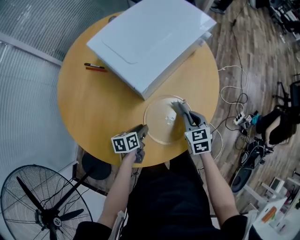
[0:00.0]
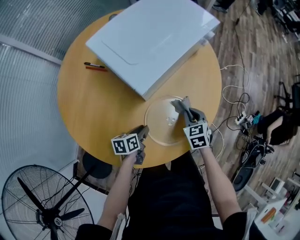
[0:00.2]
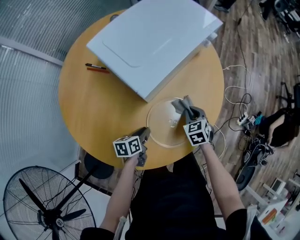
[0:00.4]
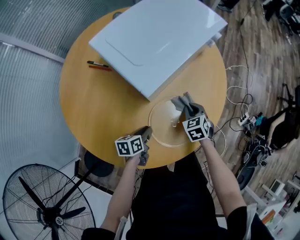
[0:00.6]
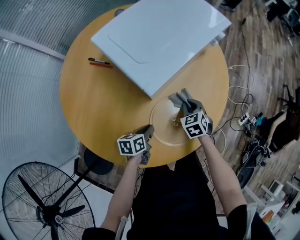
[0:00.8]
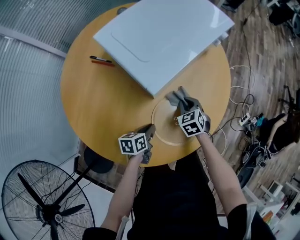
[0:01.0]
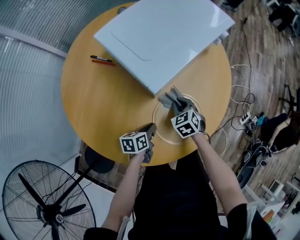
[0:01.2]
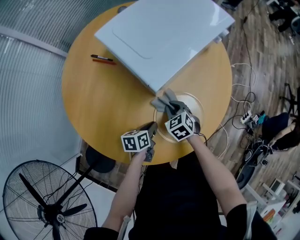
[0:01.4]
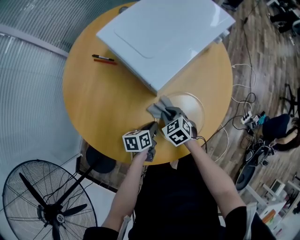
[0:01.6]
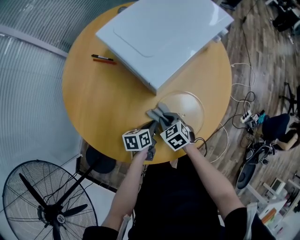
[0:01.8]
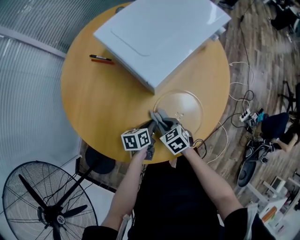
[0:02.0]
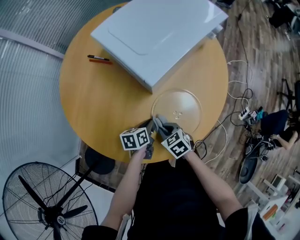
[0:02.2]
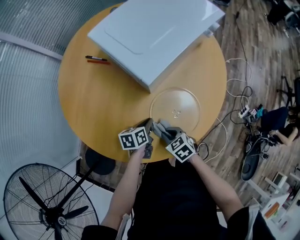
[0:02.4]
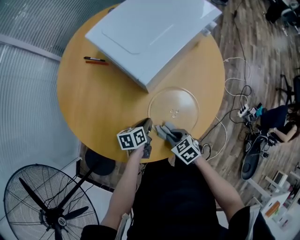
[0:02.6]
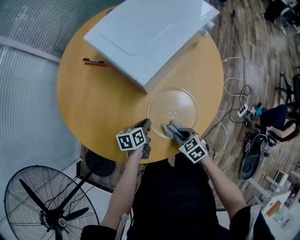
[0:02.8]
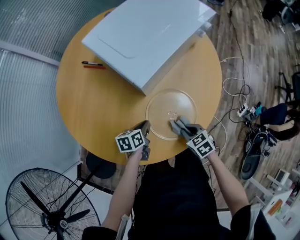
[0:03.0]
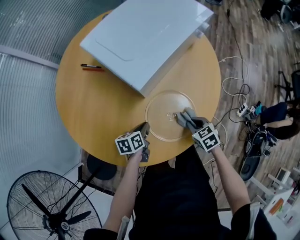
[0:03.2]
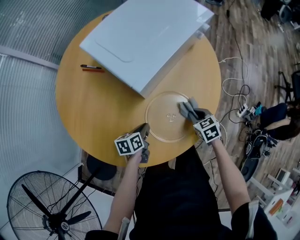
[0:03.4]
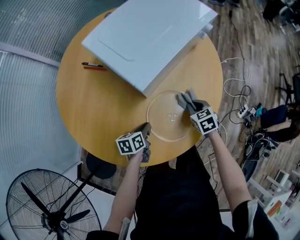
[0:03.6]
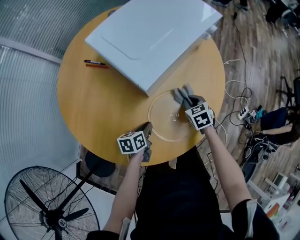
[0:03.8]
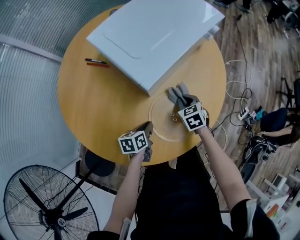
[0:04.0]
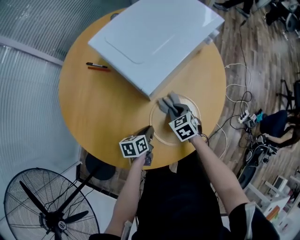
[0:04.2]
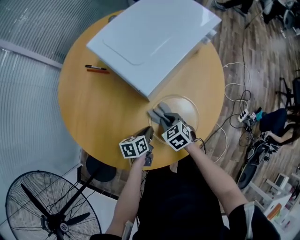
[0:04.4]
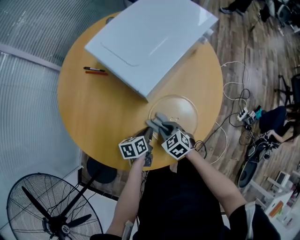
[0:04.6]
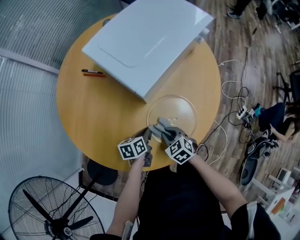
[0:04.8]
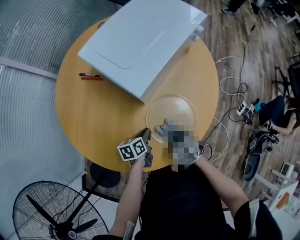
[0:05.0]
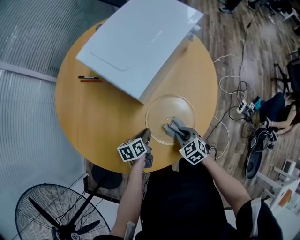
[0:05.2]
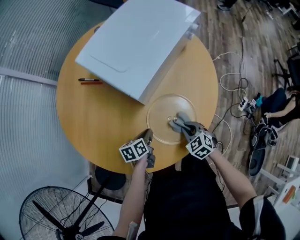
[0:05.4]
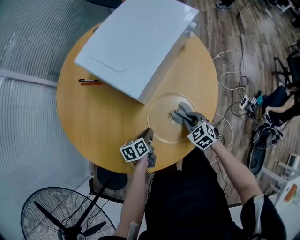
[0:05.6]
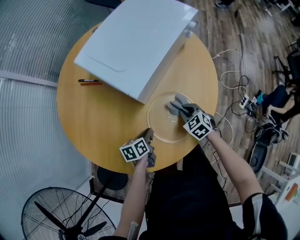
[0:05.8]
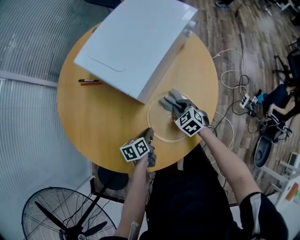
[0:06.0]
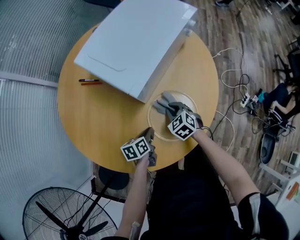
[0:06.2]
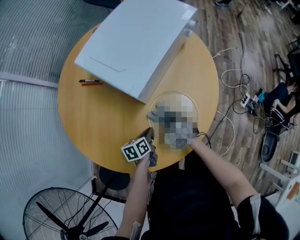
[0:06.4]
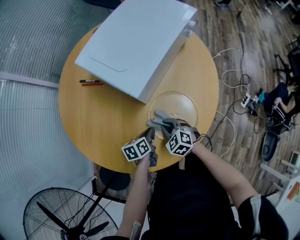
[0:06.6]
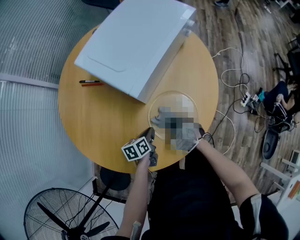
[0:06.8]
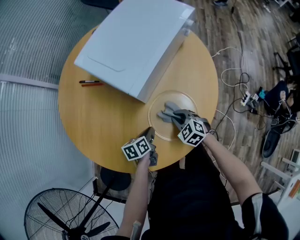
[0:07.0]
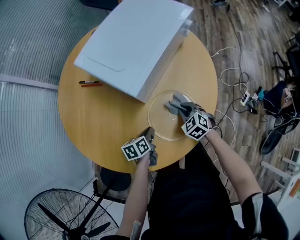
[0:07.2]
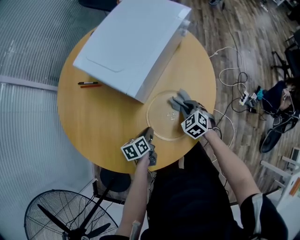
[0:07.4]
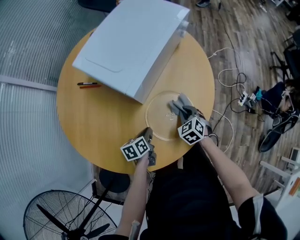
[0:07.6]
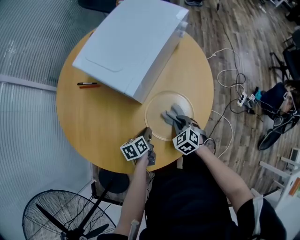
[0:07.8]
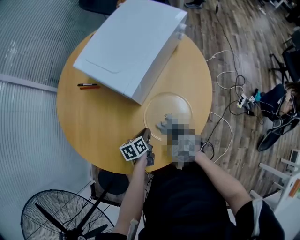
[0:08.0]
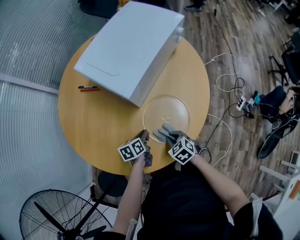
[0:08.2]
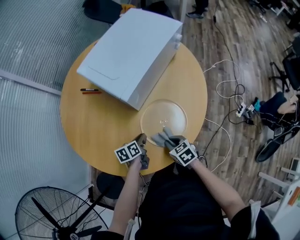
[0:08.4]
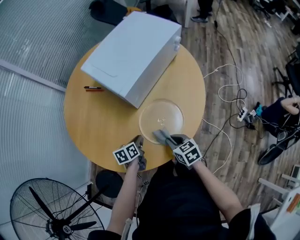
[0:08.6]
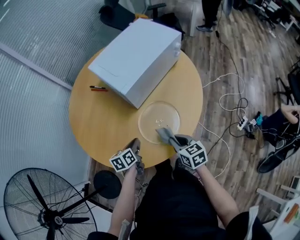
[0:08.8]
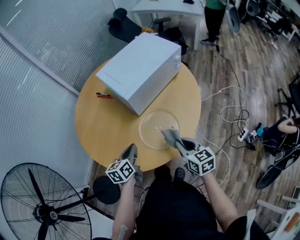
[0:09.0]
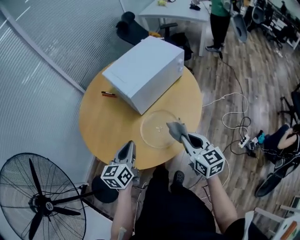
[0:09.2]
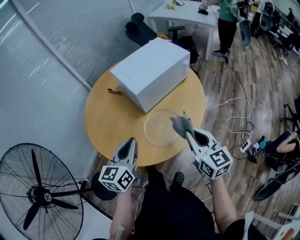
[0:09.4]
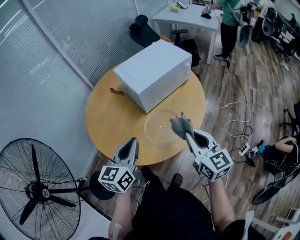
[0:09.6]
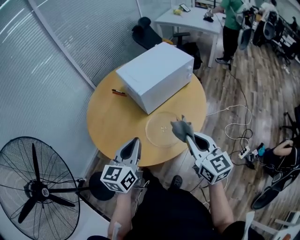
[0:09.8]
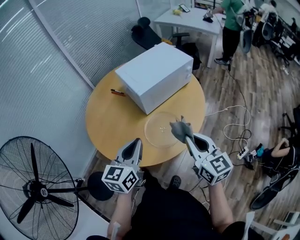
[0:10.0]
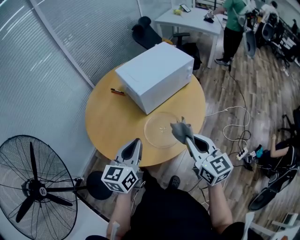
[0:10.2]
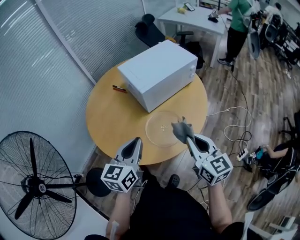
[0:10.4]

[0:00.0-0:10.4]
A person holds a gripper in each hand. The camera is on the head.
0:00.0 to 0:01.4: The right gripper is displaced to the left and downward by some 15 cm, and swivels approximately 20 degrees.
0:01.4 to 0:03.0: The right gripper shifts about 15 cm backward and to the right.
0:03.0 to 0:04.4: The right gripper travels to the left and forward by roughly 15 cm.
0:04.4 to 0:06.0: The right gripper travels to the right by approximately 10 cm.
0:07.4 to 0:09.0: Both grippers move upward, roughly 20 cm. The left gripper rotates roughly 30 degrees. Meanwhile the right gripper swivels some 50 degrees.
0:09.0 to 0:10.4: Both grippers move upward, about 15 cm. The right gripper rotates some 20 degrees; the left gripper rotates some 30 degrees.

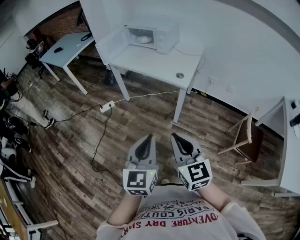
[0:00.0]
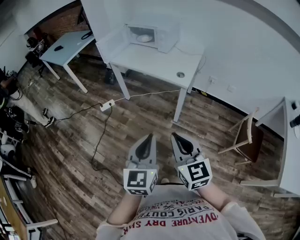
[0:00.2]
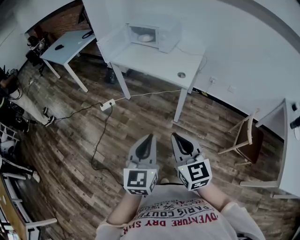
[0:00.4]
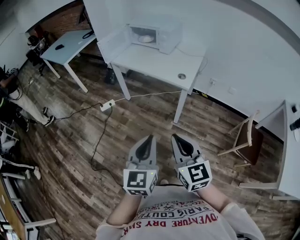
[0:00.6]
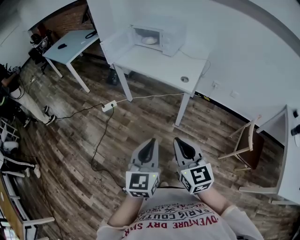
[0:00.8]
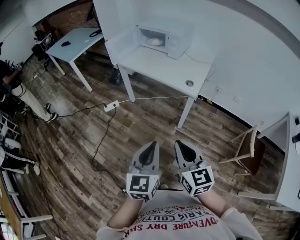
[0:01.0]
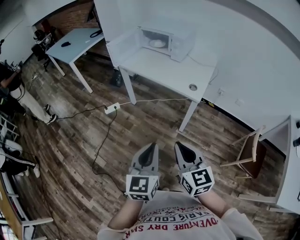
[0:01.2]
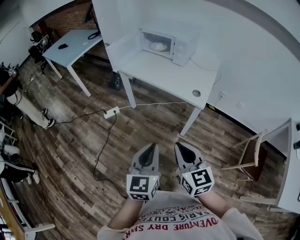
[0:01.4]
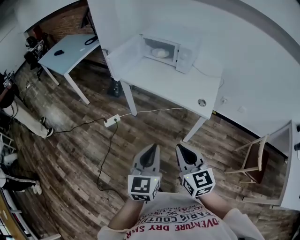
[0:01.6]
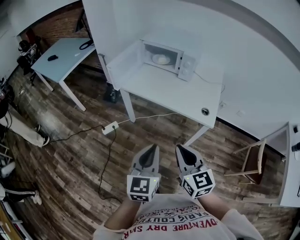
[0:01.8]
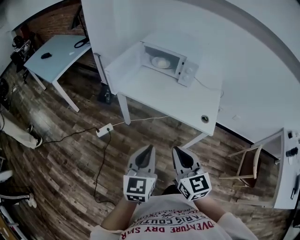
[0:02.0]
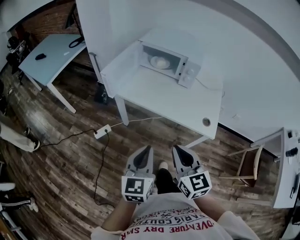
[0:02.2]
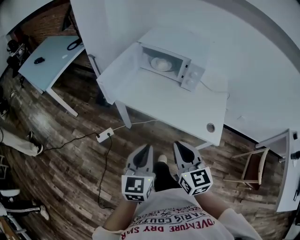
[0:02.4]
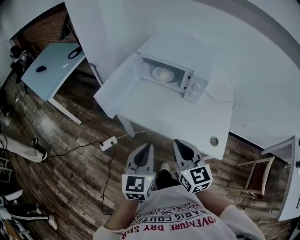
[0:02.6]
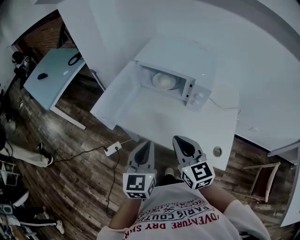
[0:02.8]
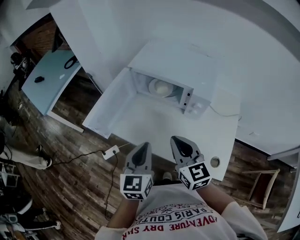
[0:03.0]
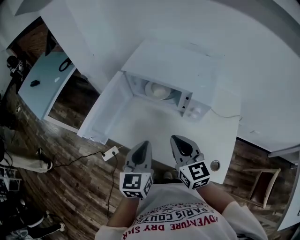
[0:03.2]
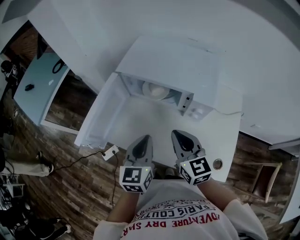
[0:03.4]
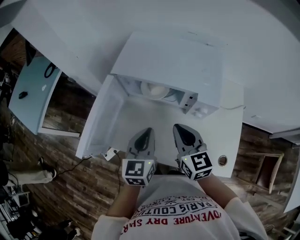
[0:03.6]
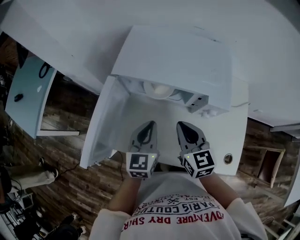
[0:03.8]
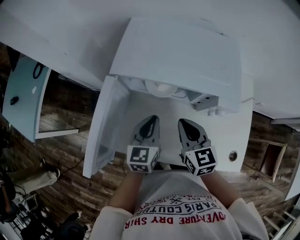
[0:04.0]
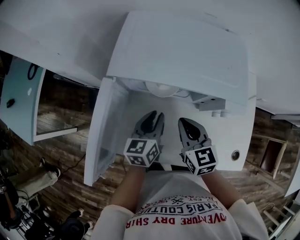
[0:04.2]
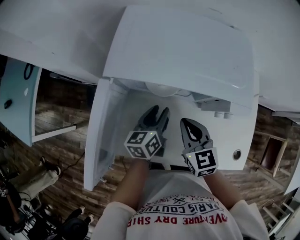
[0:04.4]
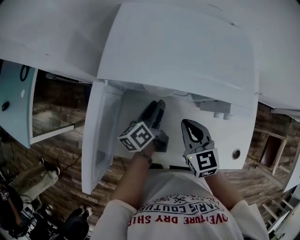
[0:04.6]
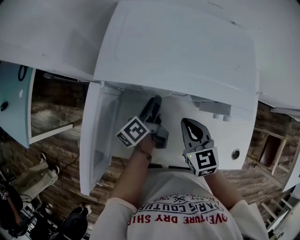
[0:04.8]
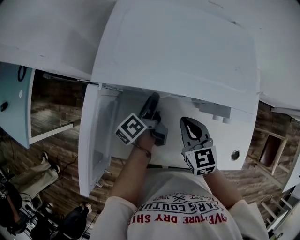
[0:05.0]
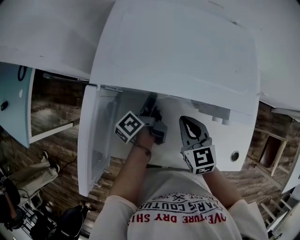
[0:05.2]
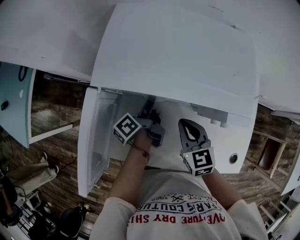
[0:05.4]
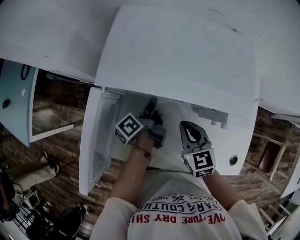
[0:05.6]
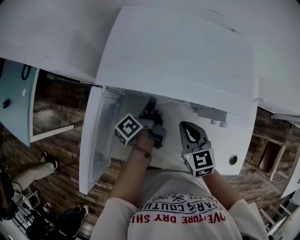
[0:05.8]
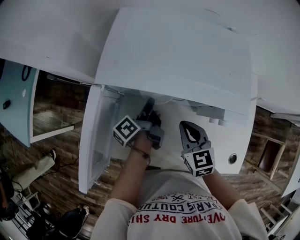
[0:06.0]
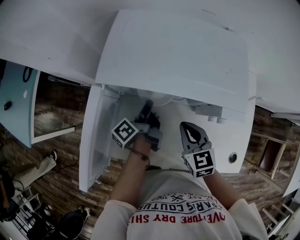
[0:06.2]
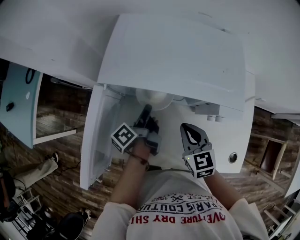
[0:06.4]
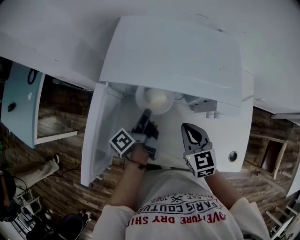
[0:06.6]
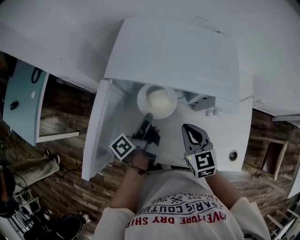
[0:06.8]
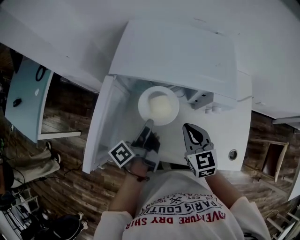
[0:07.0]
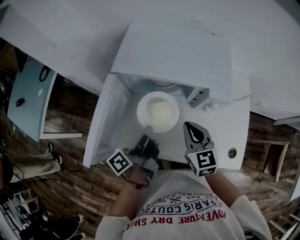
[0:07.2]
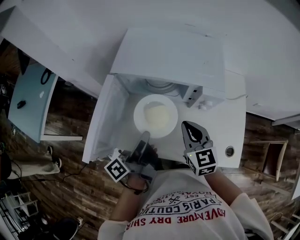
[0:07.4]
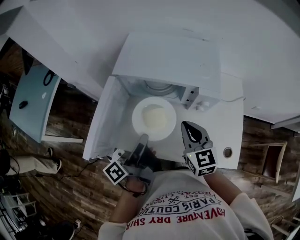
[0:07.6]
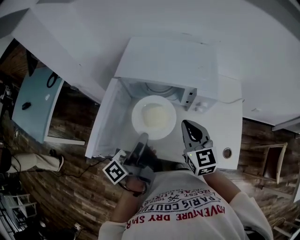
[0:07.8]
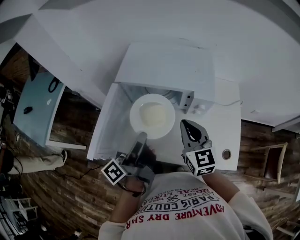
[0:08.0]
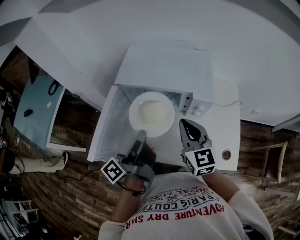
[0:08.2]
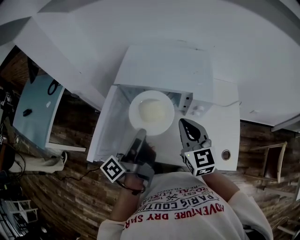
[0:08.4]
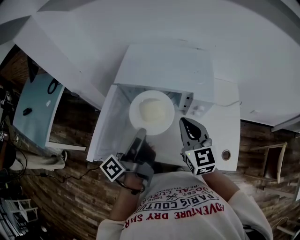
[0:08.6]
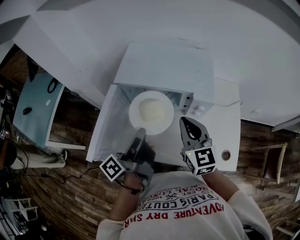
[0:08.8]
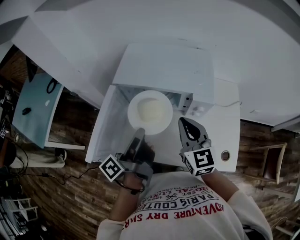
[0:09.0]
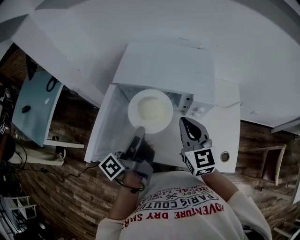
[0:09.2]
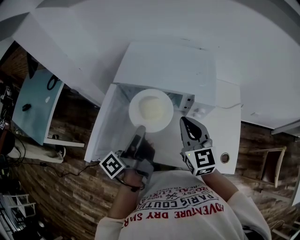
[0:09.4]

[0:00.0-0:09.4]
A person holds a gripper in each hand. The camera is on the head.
0:00.0 to 0:01.6: Both grippers travel together forward and to the left, about 25 cm.
0:01.6 to 0:03.2: Both grippers are carried forward, approximately 50 cm.
0:03.2 to 0:04.8: The left gripper shifts about 30 cm forward and downward, rolls counterclockwise, seen from behind, by about 60 degrees, and opens, while the right gripper travels forward and downward by roughly 20 cm, and rotates some 20 degrees.
0:04.8 to 0:06.2: The left gripper closes its fingers.
0:06.2 to 0:07.8: The right gripper heads upward and backward, covering roughly 15 cm; the left gripper moves backward and upward, approximately 30 cm, and swivels some 20 degrees.
0:07.8 to 0:09.4: There are only small adjustments of the grippers.

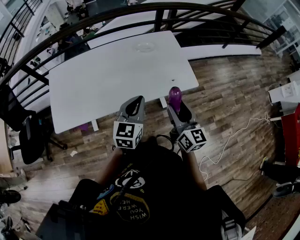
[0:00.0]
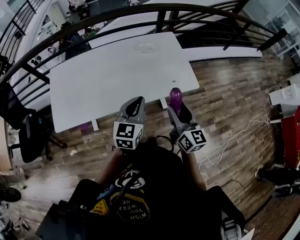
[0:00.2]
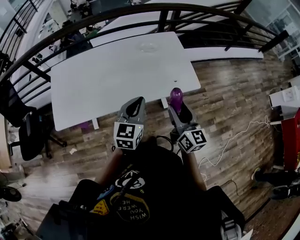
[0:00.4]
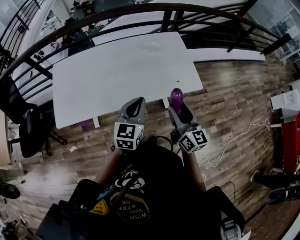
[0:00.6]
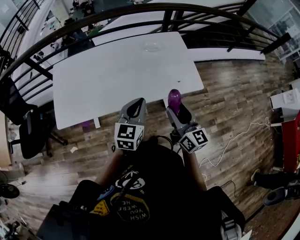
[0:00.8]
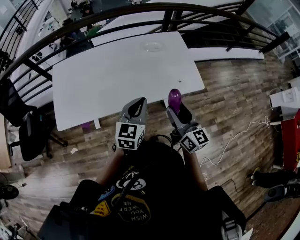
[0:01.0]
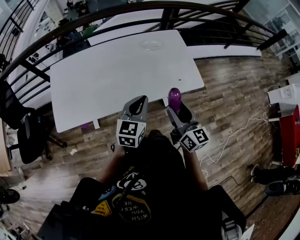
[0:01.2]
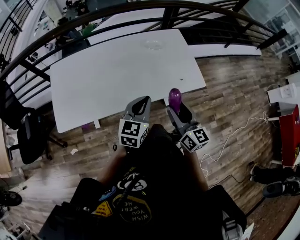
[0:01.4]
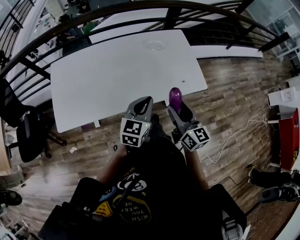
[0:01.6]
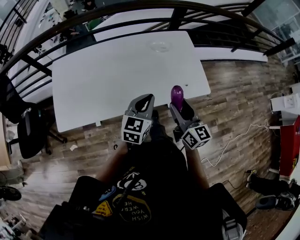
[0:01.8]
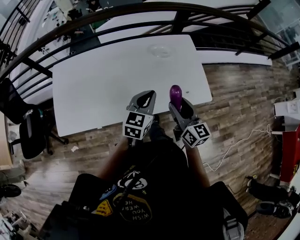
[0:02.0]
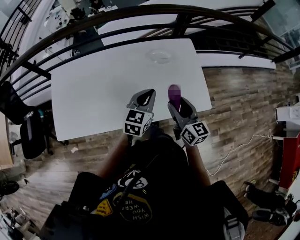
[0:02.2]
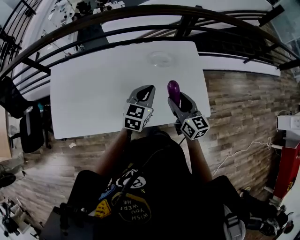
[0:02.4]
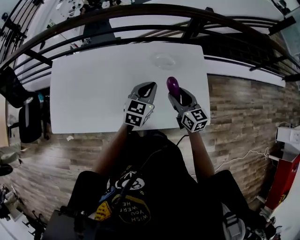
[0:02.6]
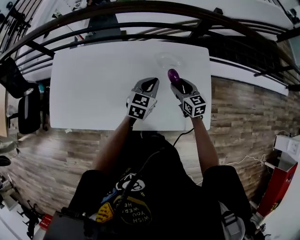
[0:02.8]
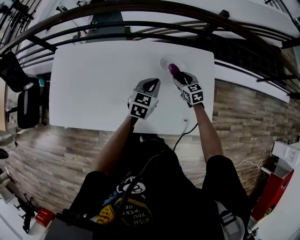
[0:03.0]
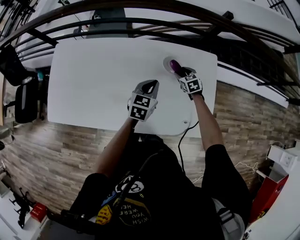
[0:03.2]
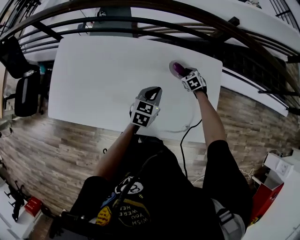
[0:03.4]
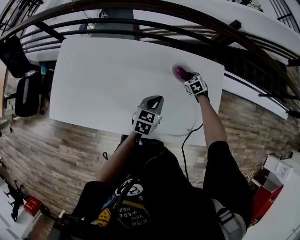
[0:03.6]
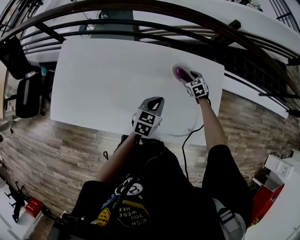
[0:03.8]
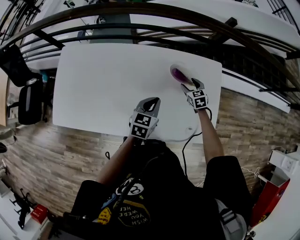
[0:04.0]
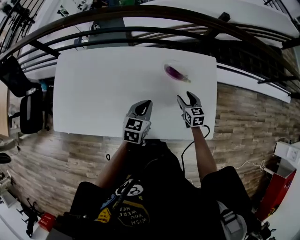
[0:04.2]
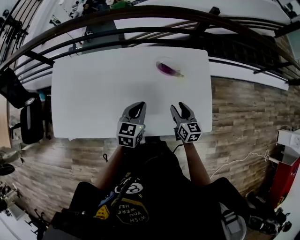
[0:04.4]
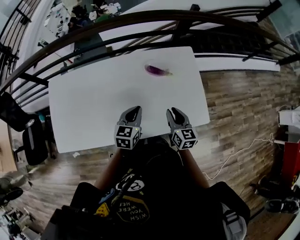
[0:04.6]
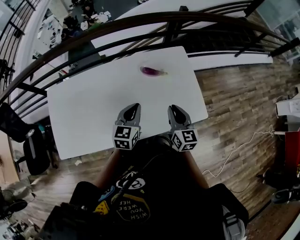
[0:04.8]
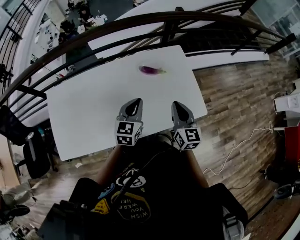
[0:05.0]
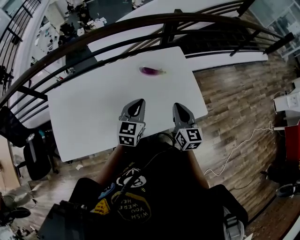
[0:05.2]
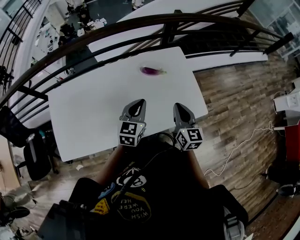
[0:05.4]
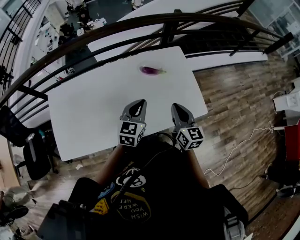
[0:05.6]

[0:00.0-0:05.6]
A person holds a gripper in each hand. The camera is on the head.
0:00.0 to 0:01.4: The grippers both shift to the left by approximately 5 cm.
0:01.4 to 0:02.8: The left gripper moves forward, approximately 40 cm. Meanwhile the right gripper moves forward and downward, approximately 50 cm, and rotates approximately 30 degrees.
0:02.8 to 0:04.2: The left gripper goes some 5 cm to the left. Meanwhile the right gripper is displaced downward by some 5 cm.
0:04.2 to 0:05.6: The right gripper shifts some 30 cm upward and backward, rotates some 30 degrees, and closes its fingers; the left gripper is displaced upward and backward by some 15 cm, and changes its angle by about 20 degrees.
